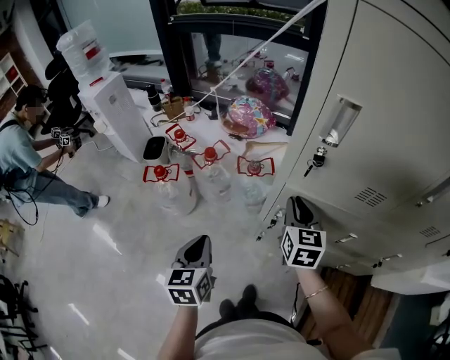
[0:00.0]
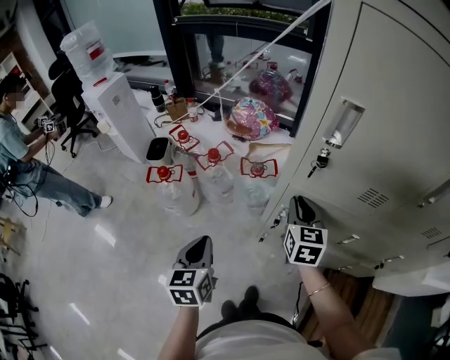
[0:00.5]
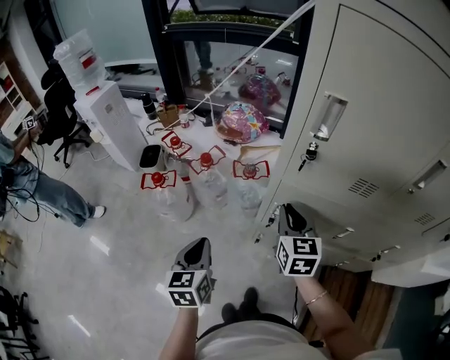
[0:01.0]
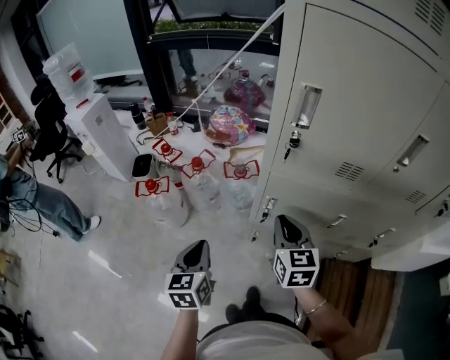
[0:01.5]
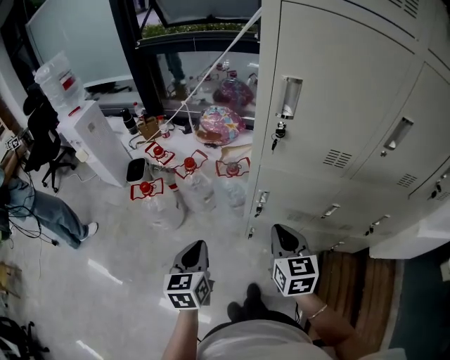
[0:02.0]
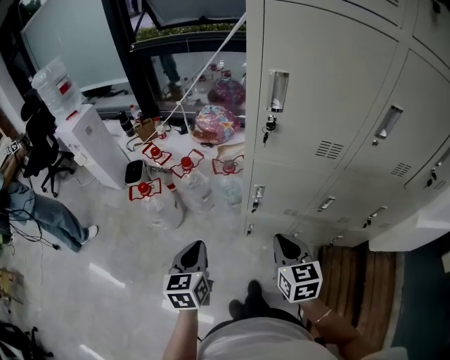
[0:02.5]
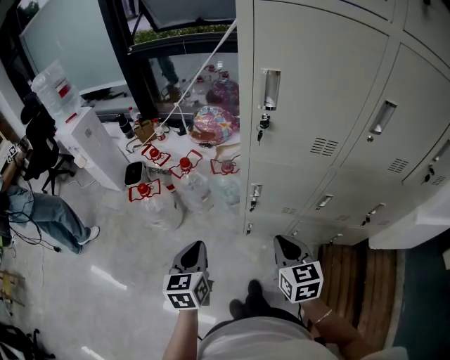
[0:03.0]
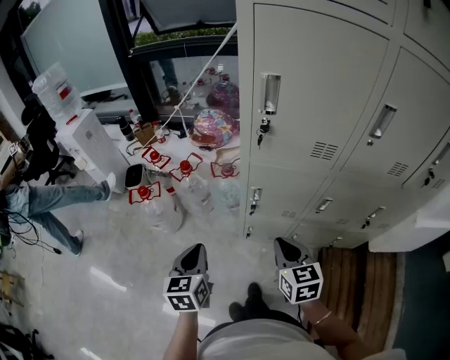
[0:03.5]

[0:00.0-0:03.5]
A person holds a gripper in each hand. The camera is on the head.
0.0 to 2.0 s: The right gripper heads backward, covering about 15 cm. Meanwhile the left gripper heads backward, covering about 5 cm.
2.0 to 3.5 s: The right gripper is displaced backward by about 5 cm.

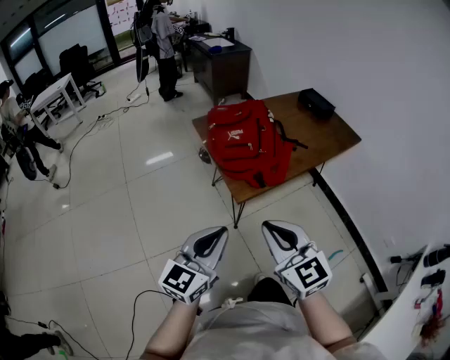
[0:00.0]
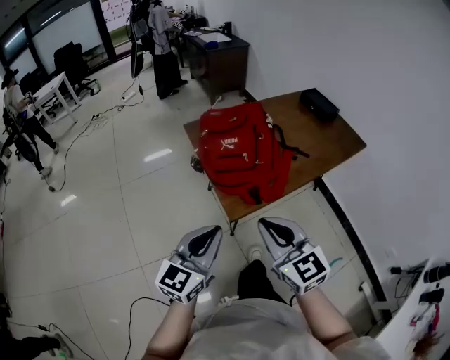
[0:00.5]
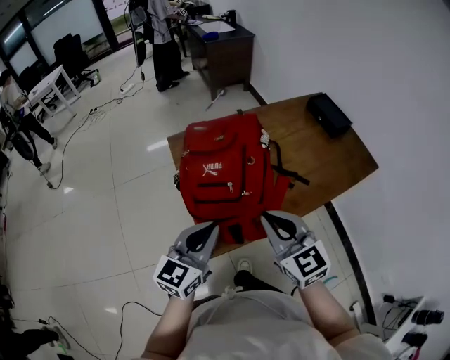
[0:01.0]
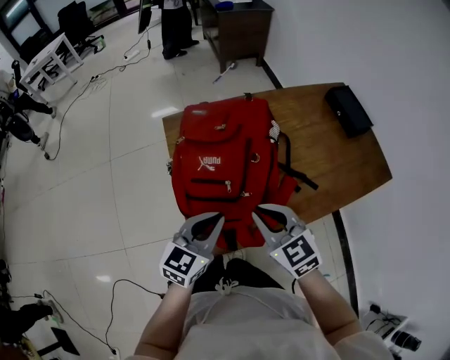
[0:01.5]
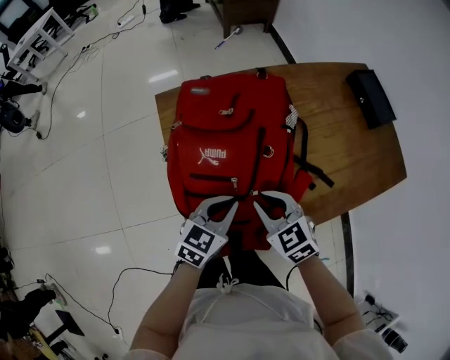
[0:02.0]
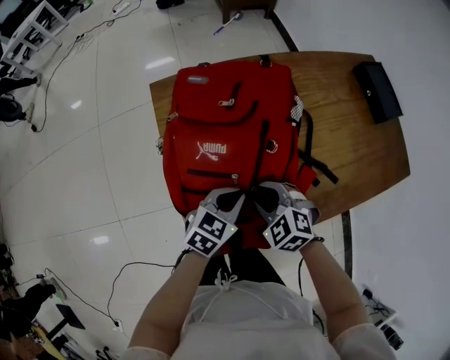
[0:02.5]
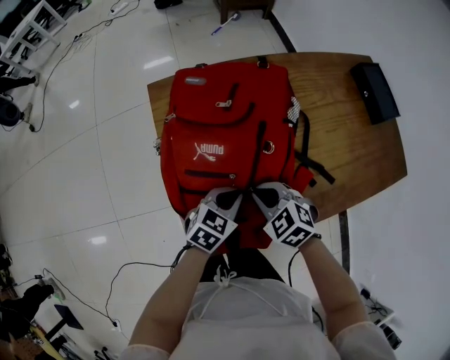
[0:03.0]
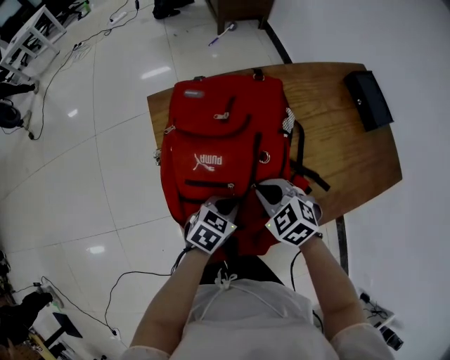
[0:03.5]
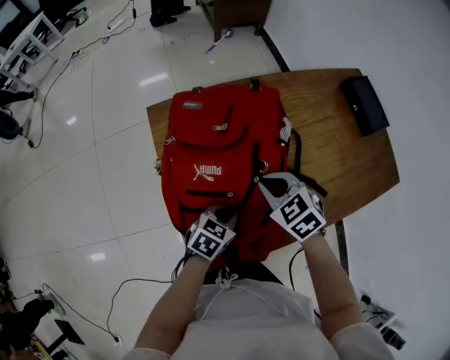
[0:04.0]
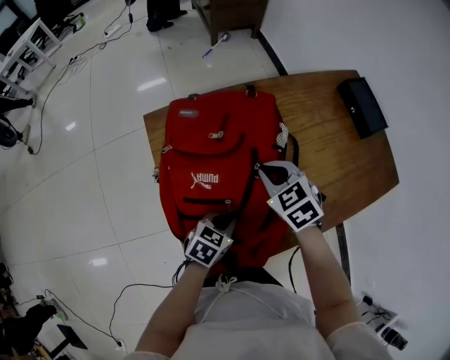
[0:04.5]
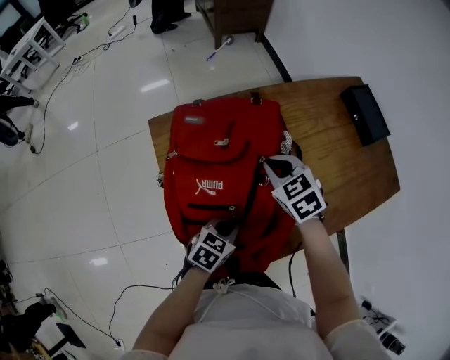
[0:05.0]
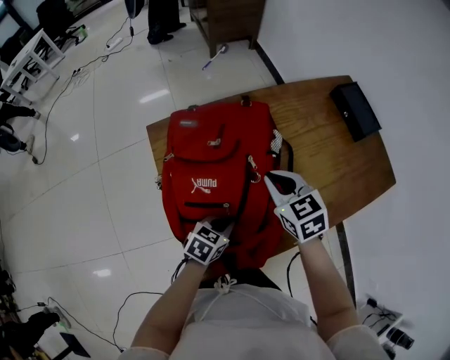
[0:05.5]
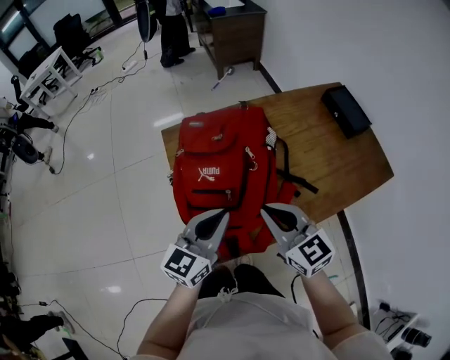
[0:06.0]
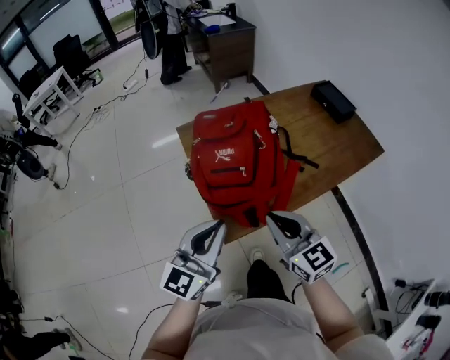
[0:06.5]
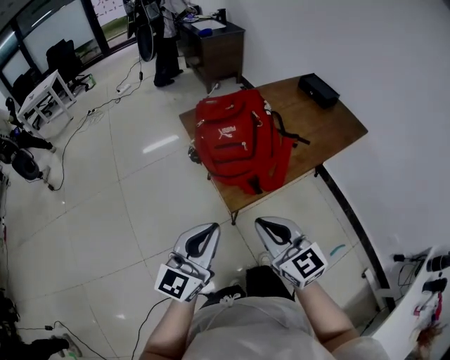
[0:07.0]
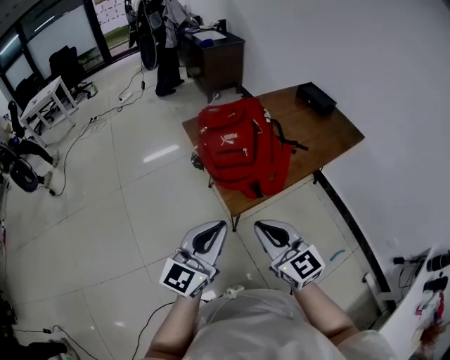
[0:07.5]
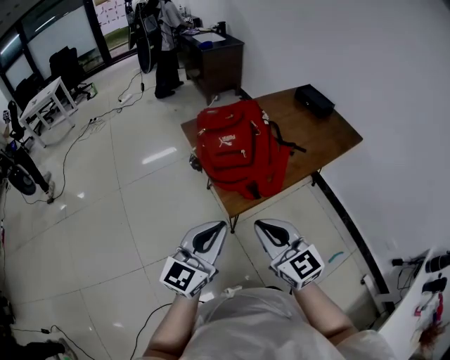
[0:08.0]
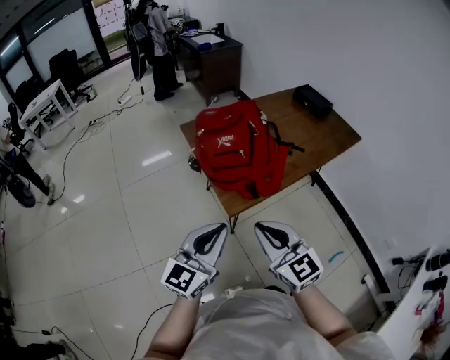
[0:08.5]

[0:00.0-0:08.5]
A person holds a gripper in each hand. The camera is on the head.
0.0 to 2.0 s: Both grippers are carried forward, approximately 40 cm. Both grippers move downward, approximately 25 cm. The left gripper changes its angle by about 30 degrees; the right gripper changes its angle by some 30 degrees.
2.0 to 4.0 s: The right gripper travels forward by roughly 10 cm, while the left gripper goes about 10 cm downward.
4.0 to 6.5 s: The right gripper moves backward and upward, about 30 cm, and angles its fingers upward, by about 40 degrees. Meanwhile the left gripper moves upward and backward, about 35 cm, and tips its fingers upward by approximately 50 degrees.
6.5 to 8.5 s: Both grippers move backward, about 15 cm.

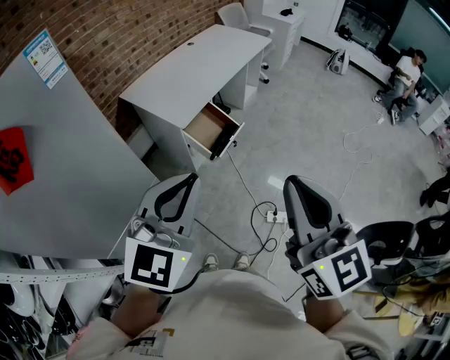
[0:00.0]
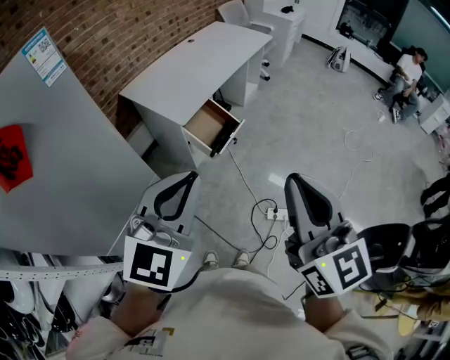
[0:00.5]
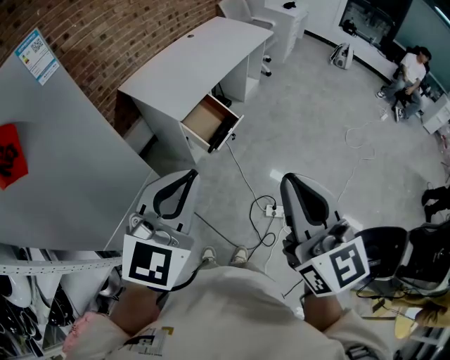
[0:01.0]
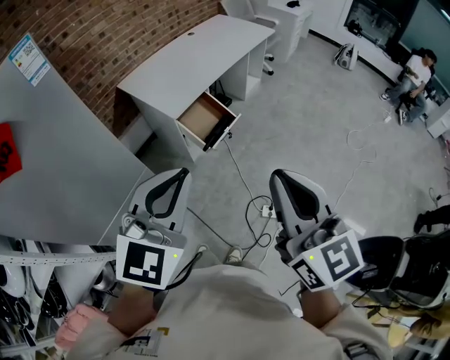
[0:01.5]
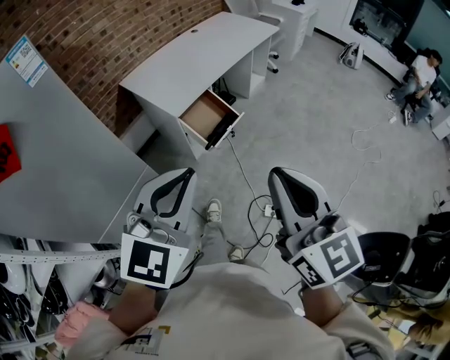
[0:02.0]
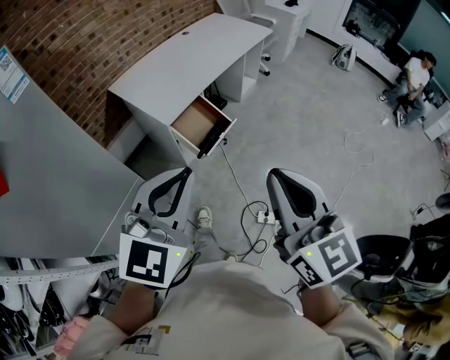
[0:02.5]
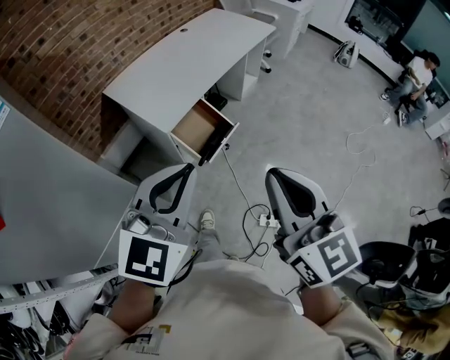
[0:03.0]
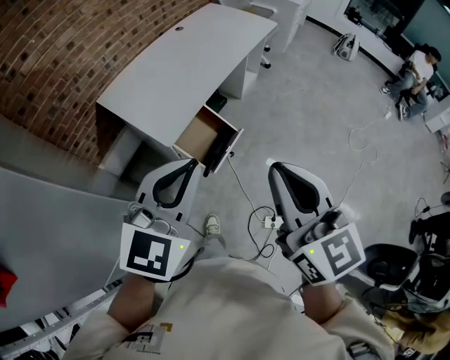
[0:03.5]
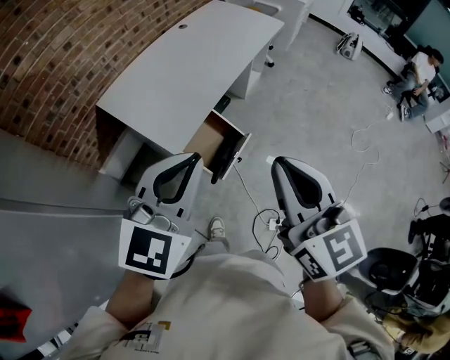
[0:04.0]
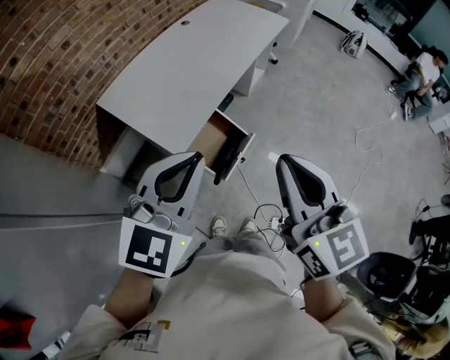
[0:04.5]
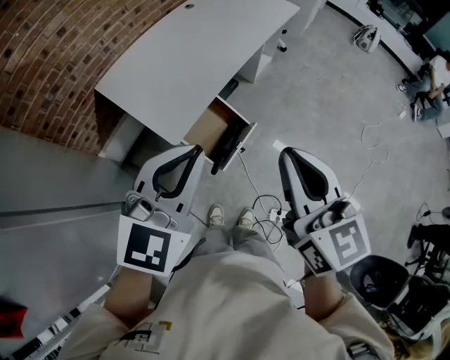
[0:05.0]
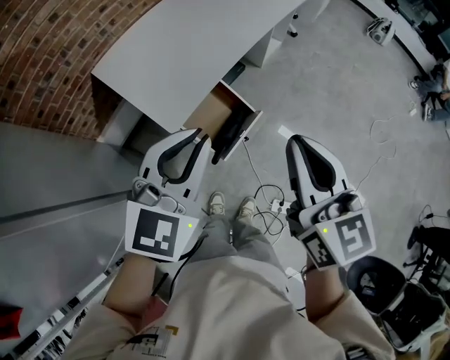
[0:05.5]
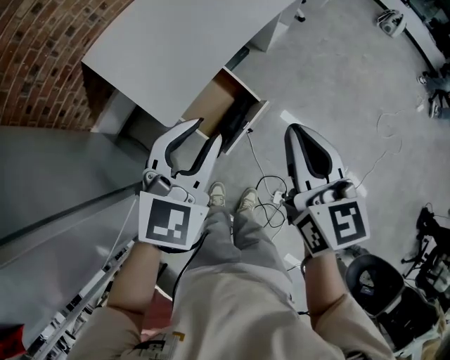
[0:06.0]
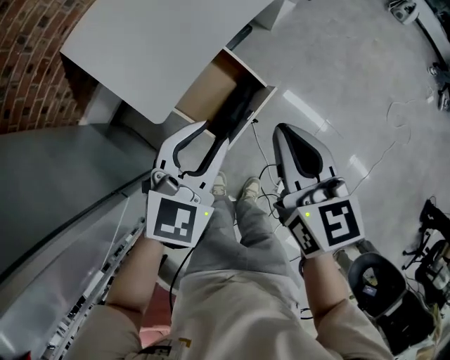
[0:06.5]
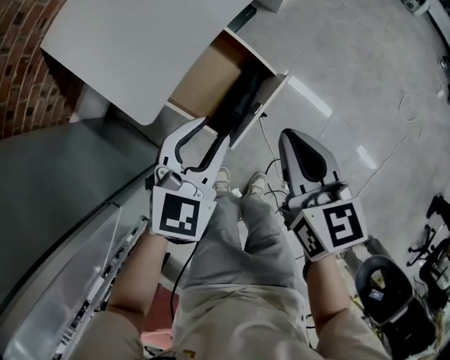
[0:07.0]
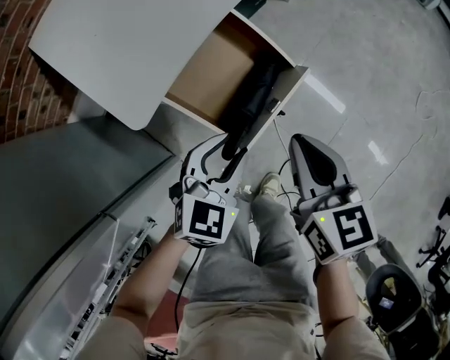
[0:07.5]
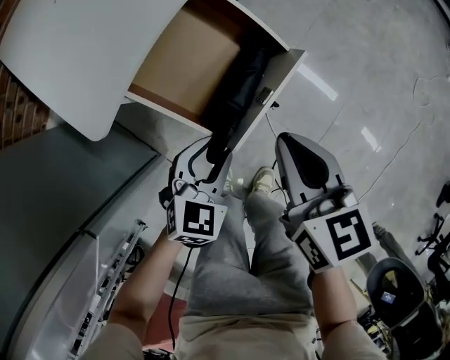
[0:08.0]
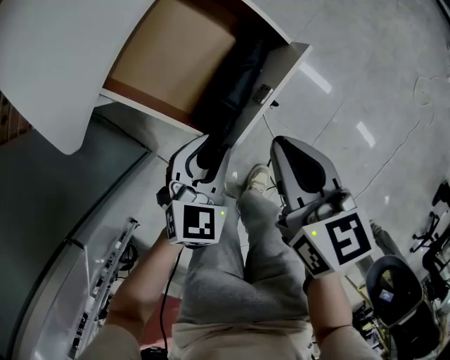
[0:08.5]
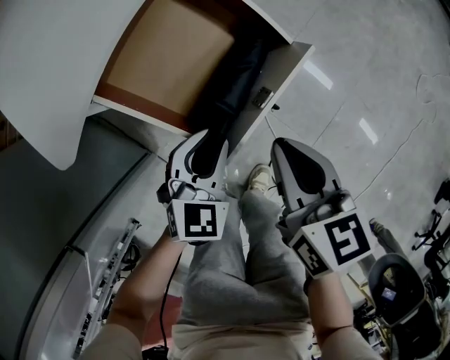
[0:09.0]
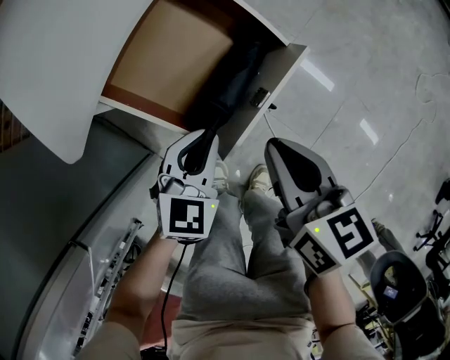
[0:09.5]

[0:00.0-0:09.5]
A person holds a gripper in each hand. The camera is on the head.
0.0 to 2.0 s: Both grippers travel together to the right, approximately 5 cm.
2.0 to 4.0 s: Both grippers move forward, about 30 cm.
4.0 to 5.5 s: The left gripper is displaced downward and forward by roughly 10 cm, while the right gripper shifts approximately 15 cm forward and downward.
5.5 to 7.5 s: Both grippers travel together downward, about 40 cm. The left gripper rotates roughly 20 degrees, and opens its fingers. Meanwhile the right gripper swivels some 20 degrees.
7.5 to 9.5 s: Both grippers move downward, about 10 cm. The left gripper closes its fingers.

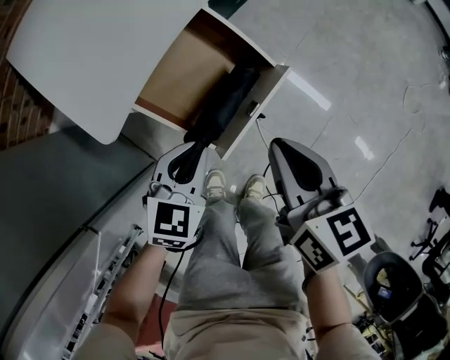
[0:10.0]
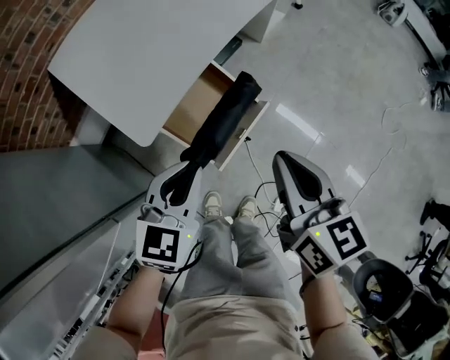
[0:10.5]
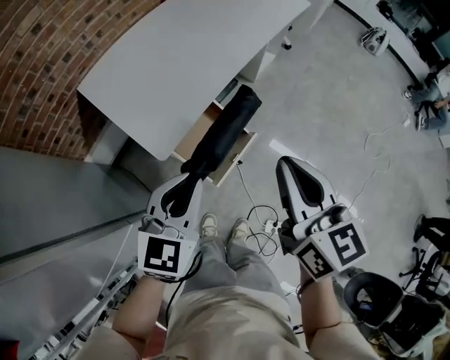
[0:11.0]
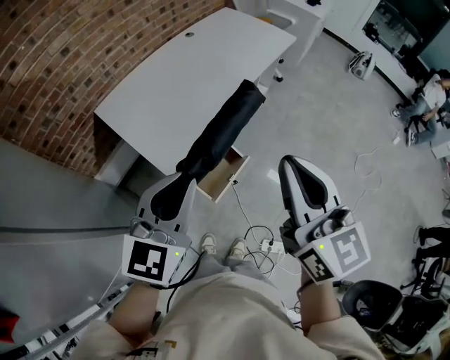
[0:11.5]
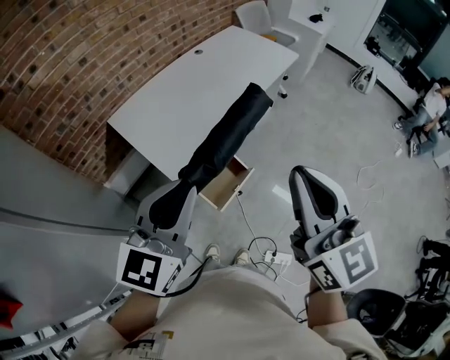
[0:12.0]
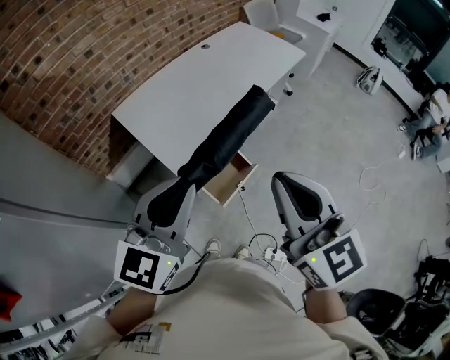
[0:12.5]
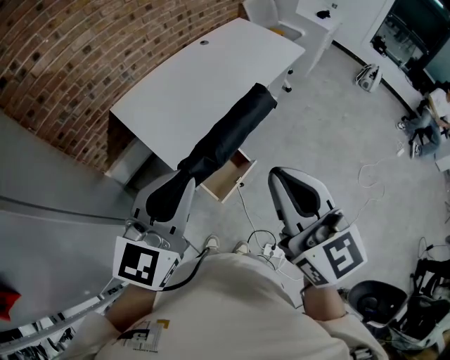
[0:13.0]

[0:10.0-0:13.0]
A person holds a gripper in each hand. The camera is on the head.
10.0 to 11.5 s: The two grippers go approximately 50 cm upward. The left gripper points its fingers about 30 degrees further upward; the right gripper changes its angle by some 40 degrees.
11.5 to 13.0 s: The left gripper is displaced upward by about 5 cm, while the right gripper changes place by roughly 5 cm.

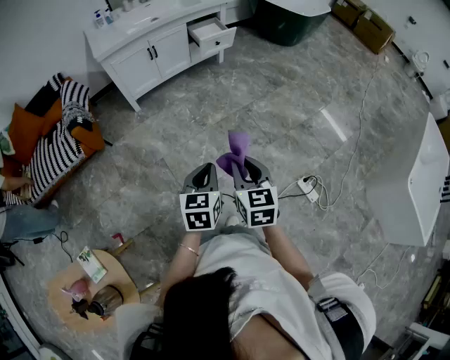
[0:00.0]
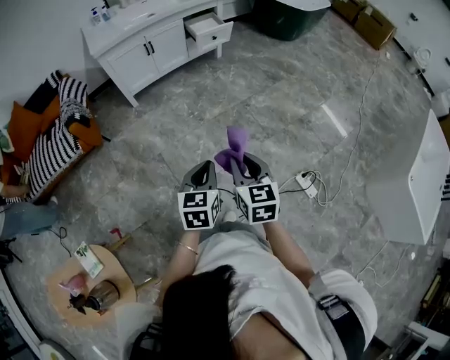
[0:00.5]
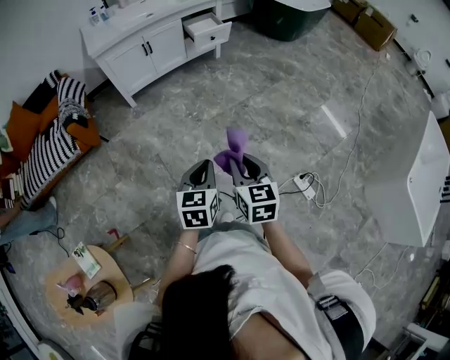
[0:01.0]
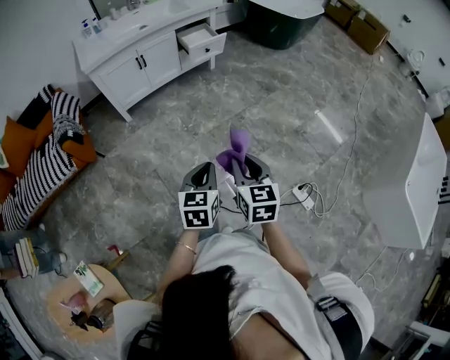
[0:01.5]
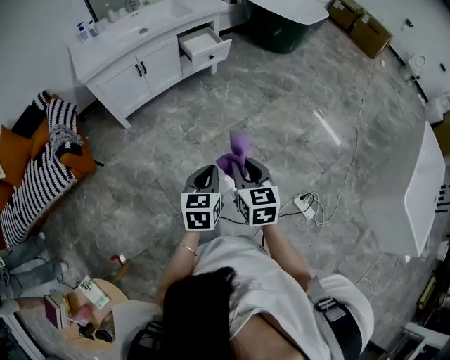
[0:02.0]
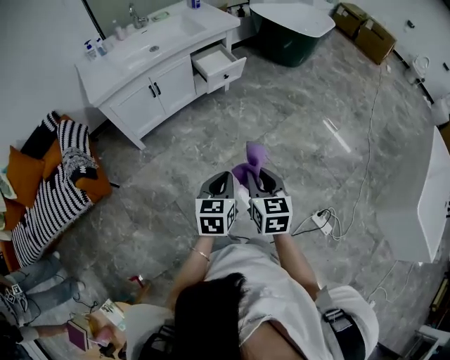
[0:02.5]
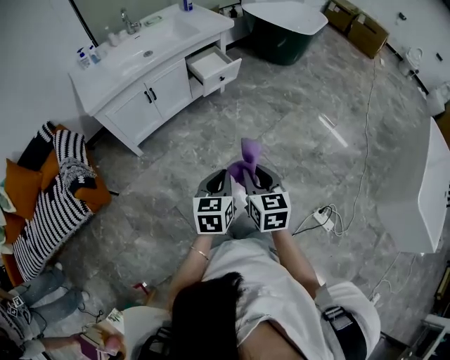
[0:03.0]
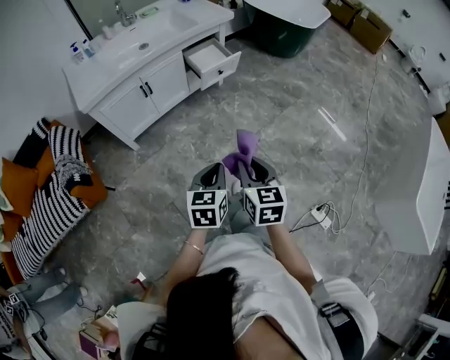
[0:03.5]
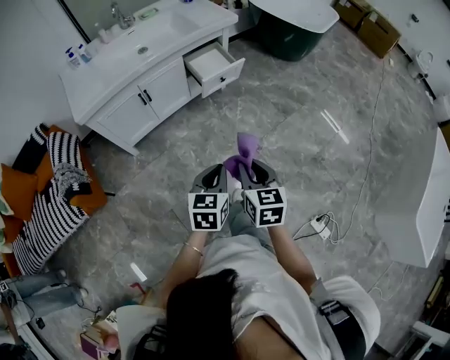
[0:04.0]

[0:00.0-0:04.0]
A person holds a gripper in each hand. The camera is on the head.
0.0 to 2.0 s: The grippers both shift forward by approximately 15 cm.
2.0 to 4.0 s: Both grippers travel together forward, roughly 25 cm.
